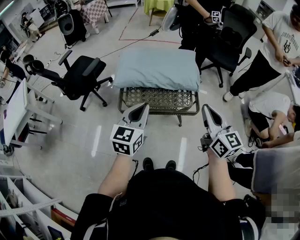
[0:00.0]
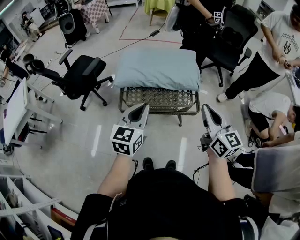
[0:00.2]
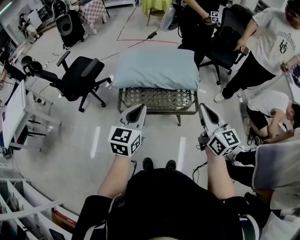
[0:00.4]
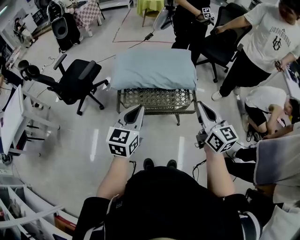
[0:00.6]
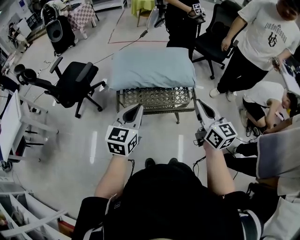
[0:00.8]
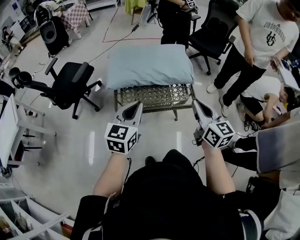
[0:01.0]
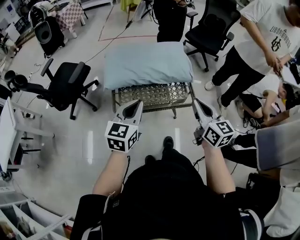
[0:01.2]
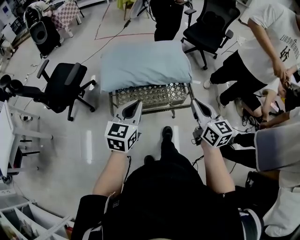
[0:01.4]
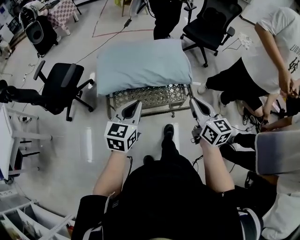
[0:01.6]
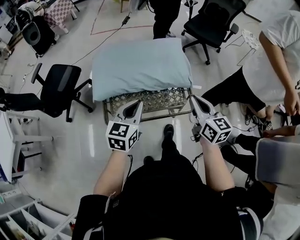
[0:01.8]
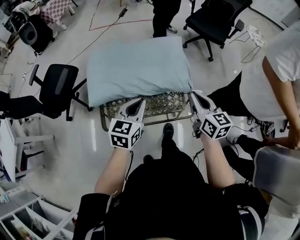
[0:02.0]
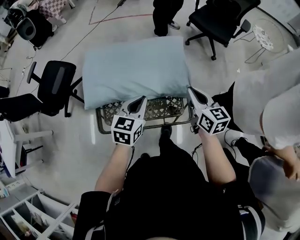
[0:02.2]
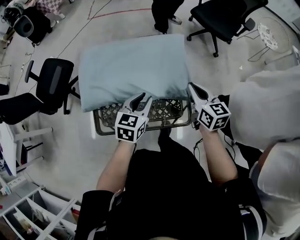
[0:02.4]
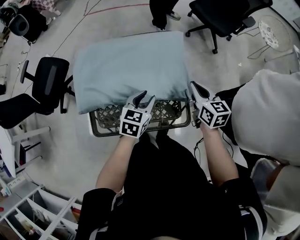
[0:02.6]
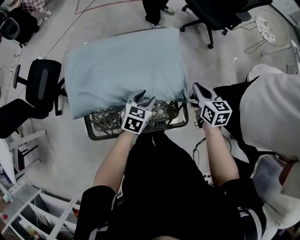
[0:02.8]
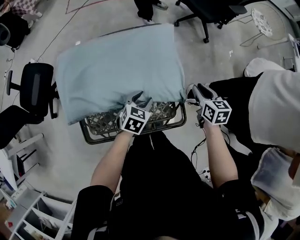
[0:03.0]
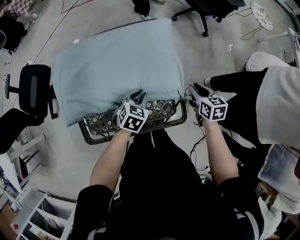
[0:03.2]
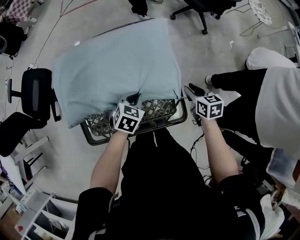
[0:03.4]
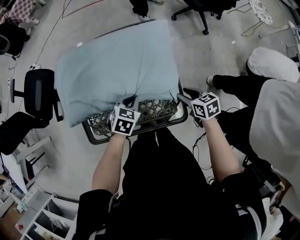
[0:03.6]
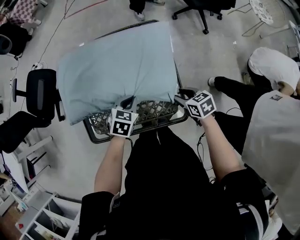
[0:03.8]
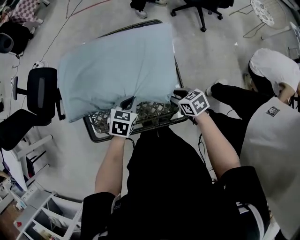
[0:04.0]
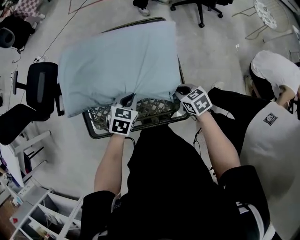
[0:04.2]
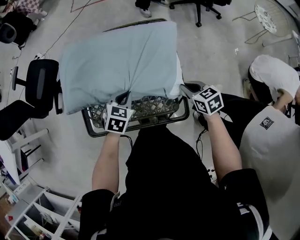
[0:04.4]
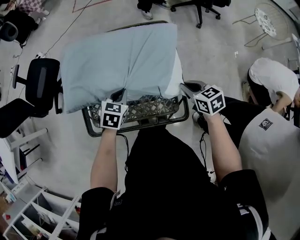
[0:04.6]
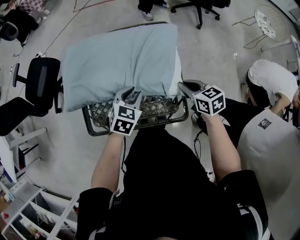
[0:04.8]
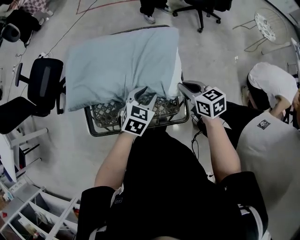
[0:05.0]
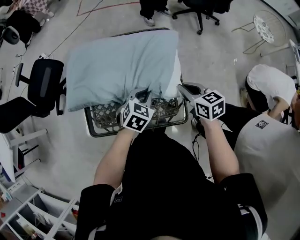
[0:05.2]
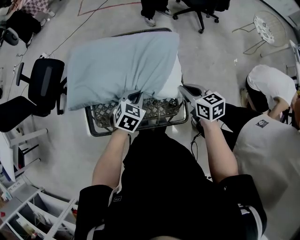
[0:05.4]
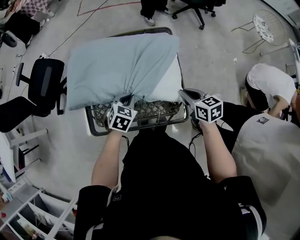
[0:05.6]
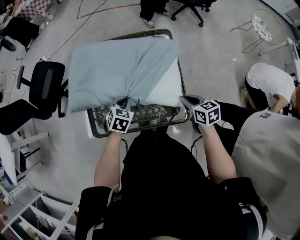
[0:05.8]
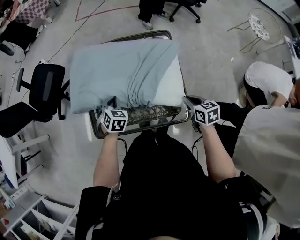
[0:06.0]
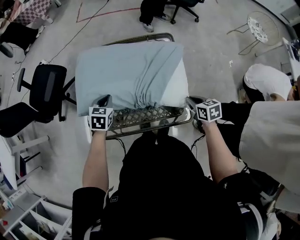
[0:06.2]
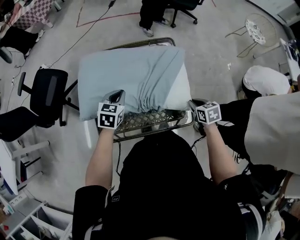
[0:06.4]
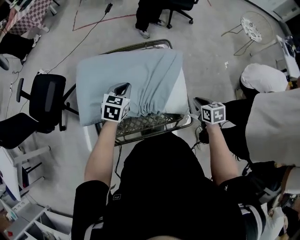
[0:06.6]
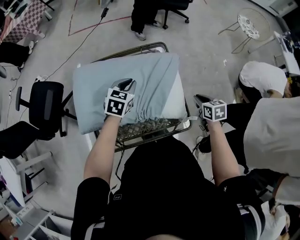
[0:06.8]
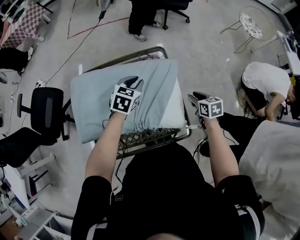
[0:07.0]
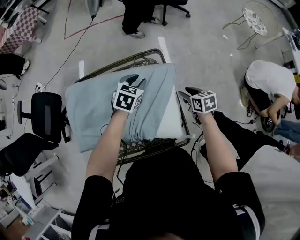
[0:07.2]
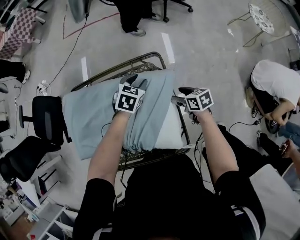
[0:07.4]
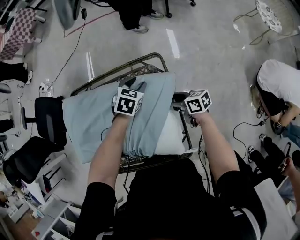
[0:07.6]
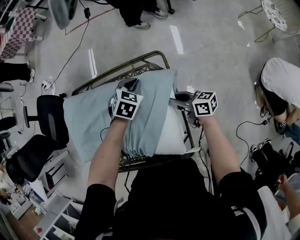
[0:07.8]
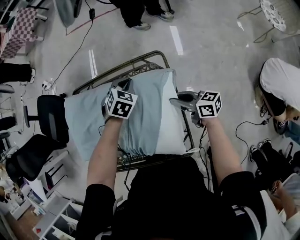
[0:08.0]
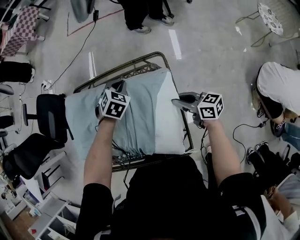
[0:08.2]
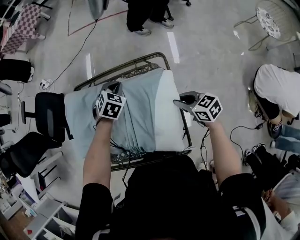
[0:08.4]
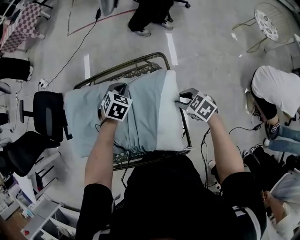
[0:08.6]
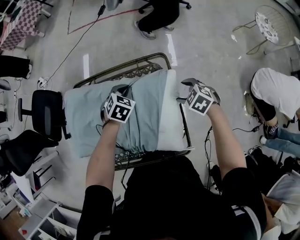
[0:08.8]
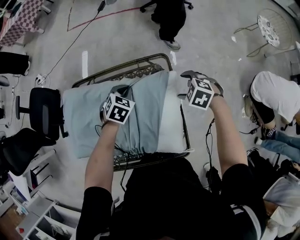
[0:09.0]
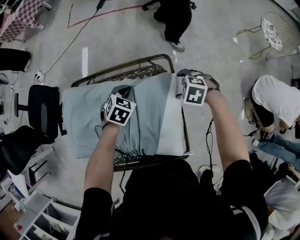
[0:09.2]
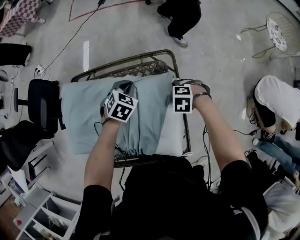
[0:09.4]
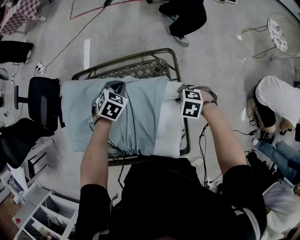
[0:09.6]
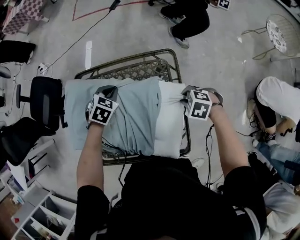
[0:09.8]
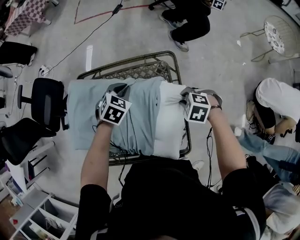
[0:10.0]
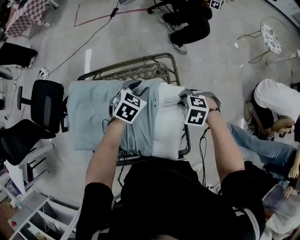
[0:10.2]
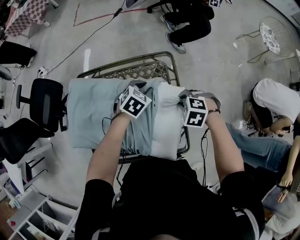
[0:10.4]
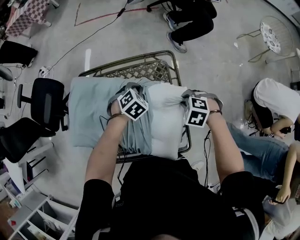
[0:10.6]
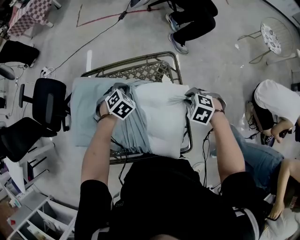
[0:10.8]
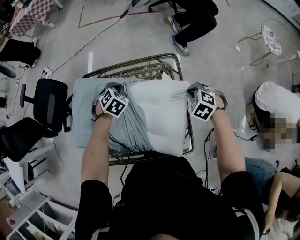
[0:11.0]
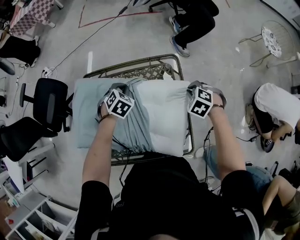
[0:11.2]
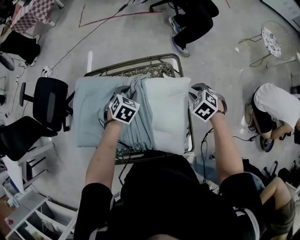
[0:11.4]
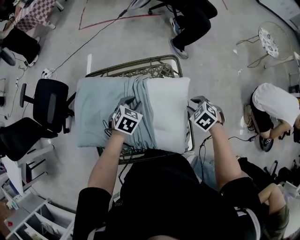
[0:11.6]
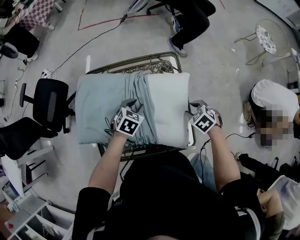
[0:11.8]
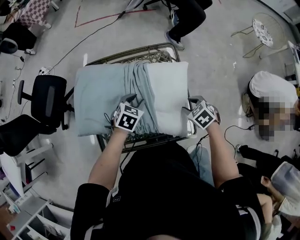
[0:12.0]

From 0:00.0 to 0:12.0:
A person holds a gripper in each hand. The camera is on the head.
From 0:00.0 to 0:01.6: The grippers both shift forward and downward by roughly 10 cm.
From 0:01.6 to 0:03.0: The right gripper moves forward, downward and to the right, some 40 cm, and changes its angle by approximately 30 degrees; the left gripper is displaced downward, forward and to the right by about 35 cm, points its fingers about 30 degrees further downward, and opens up.
From 0:03.0 to 0:04.4: The right gripper swivels about 30 degrees; the left gripper ends up roughly 10 cm from where it was, and closes up.
From 0:04.4 to 0:06.0: The left gripper heads to the left, covering about 10 cm, and opens, then closes again; the right gripper moves roughly 10 cm upward and comes back.
From 0:06.0 to 0:07.6: The right gripper changes place by approximately 20 cm, turns by about 30 degrees, and opens up. The left gripper goes upward and returns, roughly 10 cm each way, swivels roughly 20 degrees, and opens.
From 0:07.6 to 0:09.0: The left gripper goes roughly 10 cm to the left, and closes up. Meanwhile the right gripper heads upward and to the right, covering approximately 10 cm, tips its fingers downward by approximately 40 degrees, and closes, then opens again.
From 0:09.0 to 0:10.4: The left gripper ends up roughly 5 cm from where it was, and opens up. Meanwhile the right gripper moves some 5 cm downward and comes back, and closes its fingers.
From 0:10.4 to 0:12.0: The right gripper ends up about 10 cm from where it was, and changes its angle by some 40 degrees, while the left gripper shifts by about 15 cm, and closes and opens again.

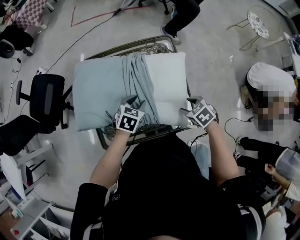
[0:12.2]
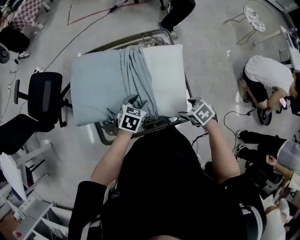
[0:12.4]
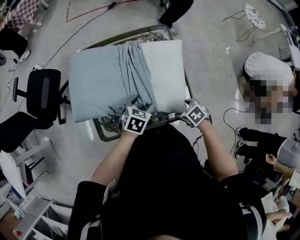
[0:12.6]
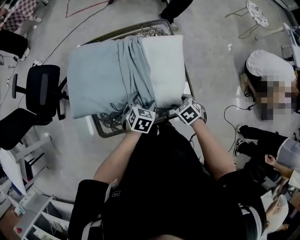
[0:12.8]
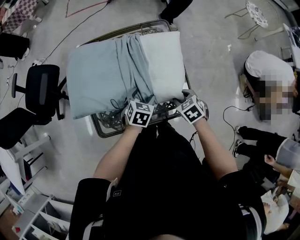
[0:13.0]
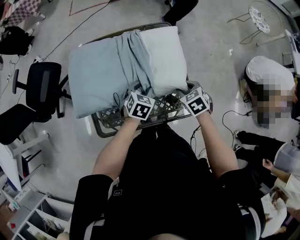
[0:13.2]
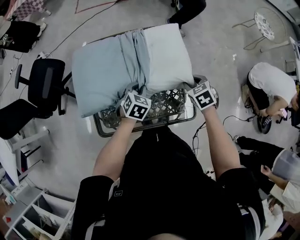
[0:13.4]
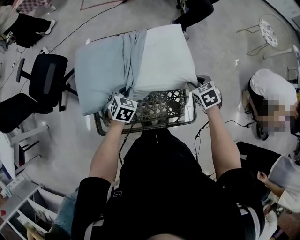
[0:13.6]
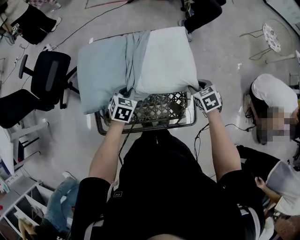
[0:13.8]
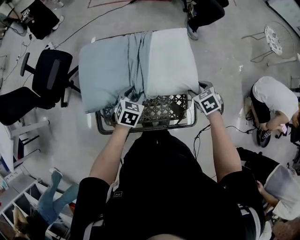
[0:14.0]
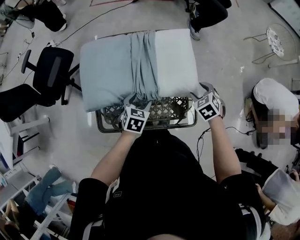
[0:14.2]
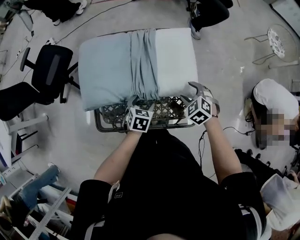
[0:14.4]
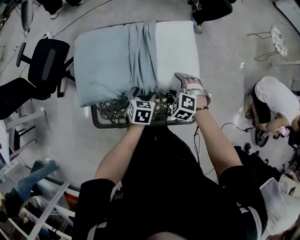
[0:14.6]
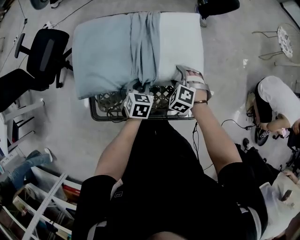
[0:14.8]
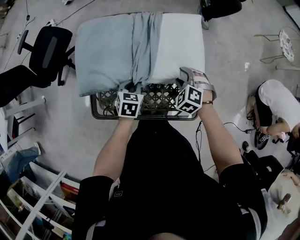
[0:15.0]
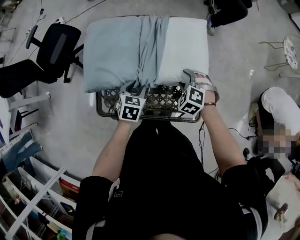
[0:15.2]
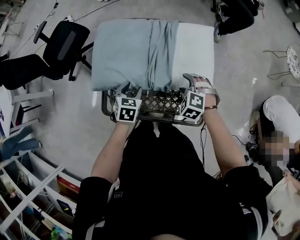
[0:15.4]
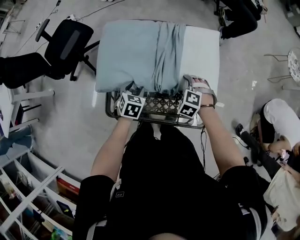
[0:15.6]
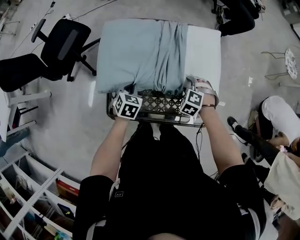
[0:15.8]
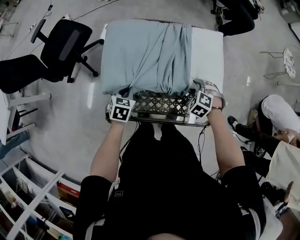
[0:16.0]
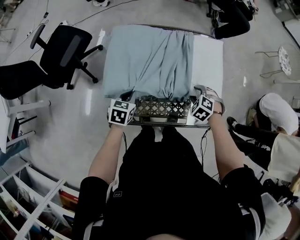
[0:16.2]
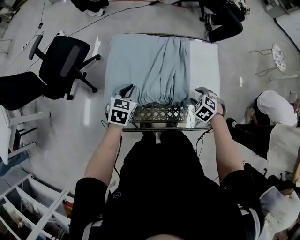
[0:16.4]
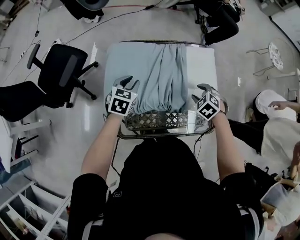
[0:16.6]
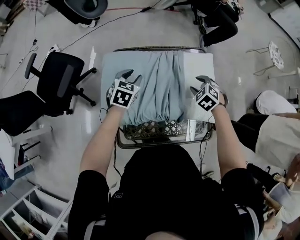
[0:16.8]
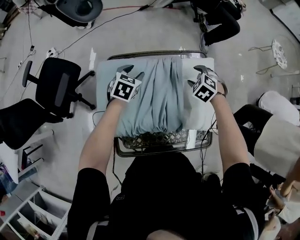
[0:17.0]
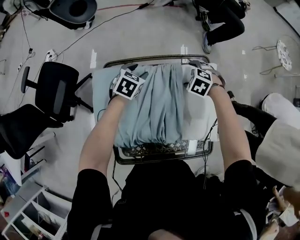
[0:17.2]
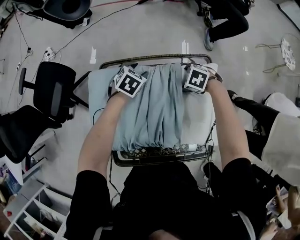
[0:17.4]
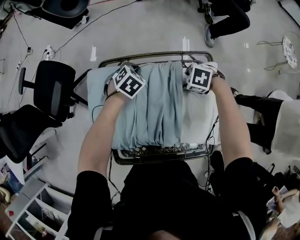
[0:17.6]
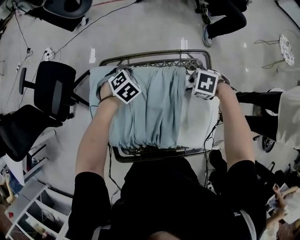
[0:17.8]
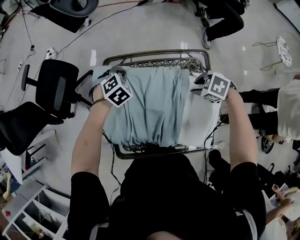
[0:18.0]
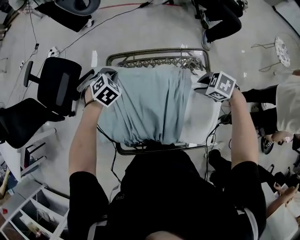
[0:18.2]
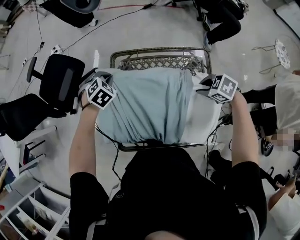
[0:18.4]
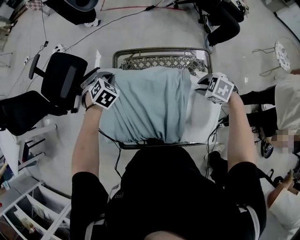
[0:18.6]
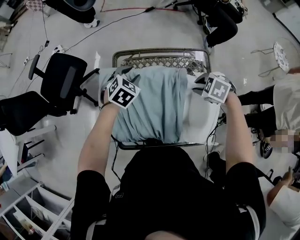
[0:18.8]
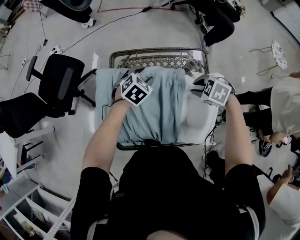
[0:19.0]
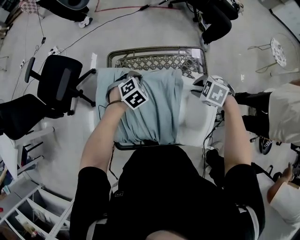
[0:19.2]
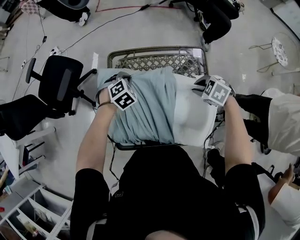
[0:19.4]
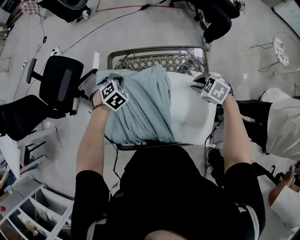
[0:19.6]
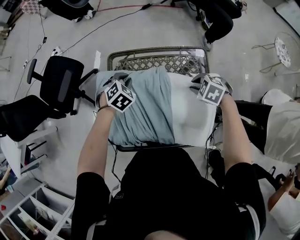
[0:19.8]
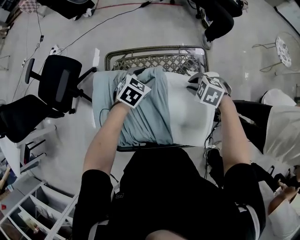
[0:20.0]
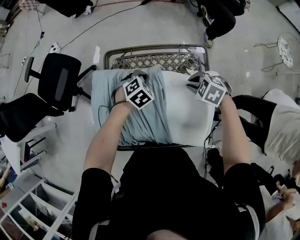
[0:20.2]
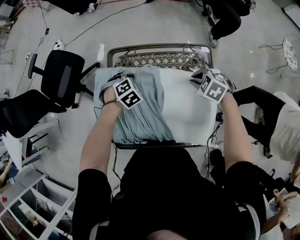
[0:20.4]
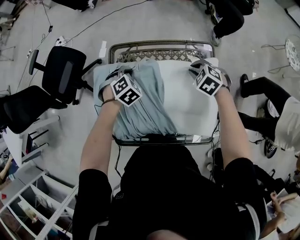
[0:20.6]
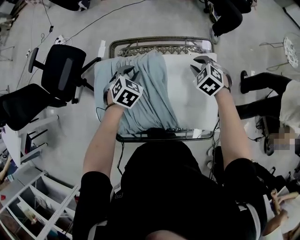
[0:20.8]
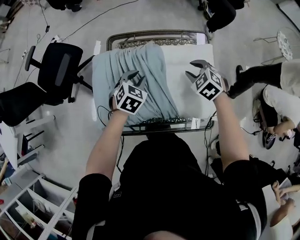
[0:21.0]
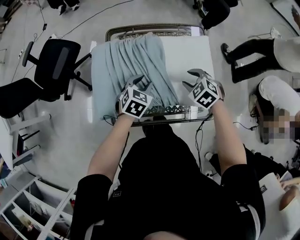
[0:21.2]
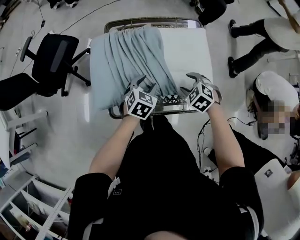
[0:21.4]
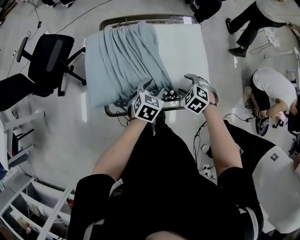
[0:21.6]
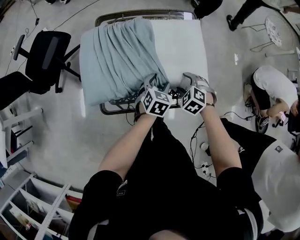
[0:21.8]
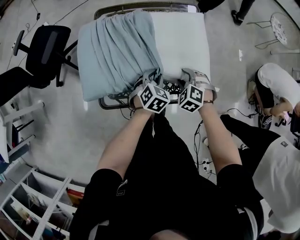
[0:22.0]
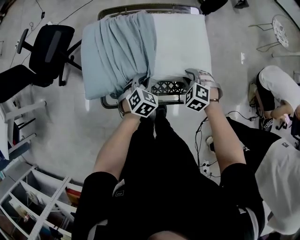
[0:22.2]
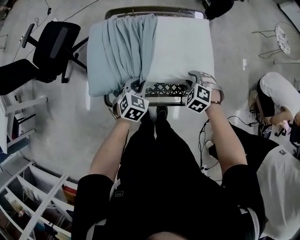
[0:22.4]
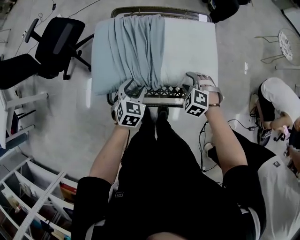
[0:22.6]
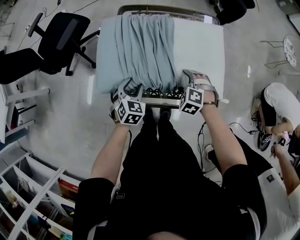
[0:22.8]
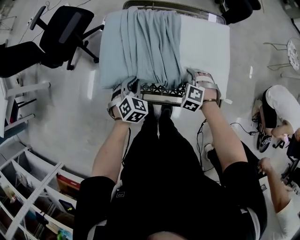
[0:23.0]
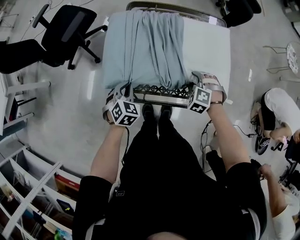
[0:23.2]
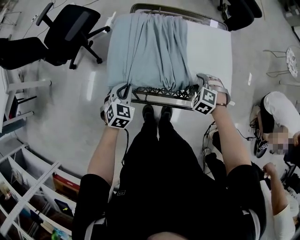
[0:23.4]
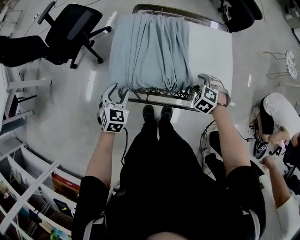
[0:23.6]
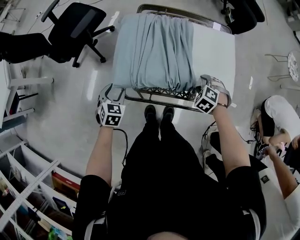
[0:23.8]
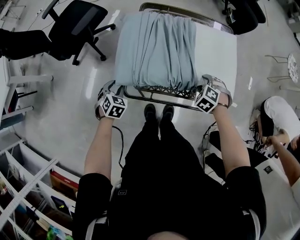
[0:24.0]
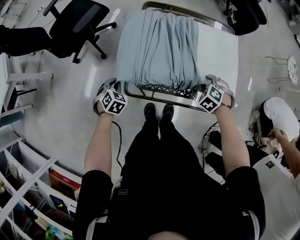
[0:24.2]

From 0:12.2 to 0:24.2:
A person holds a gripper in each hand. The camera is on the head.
From 0:12.2 to 0:13.8: The right gripper is displaced forward by some 10 cm. The left gripper travels to the left by some 5 cm, and closes.
From 0:13.8 to 0:15.2: The right gripper heads to the left, covering some 10 cm, and rolls counterclockwise, seen from behind, by approximately 50 degrees, while the left gripper goes roughly 5 cm backward, and opens its fingers.
From 0:15.2 to 0:16.6: The right gripper shifts by roughly 5 cm, and changes its angle by roughly 20 degrees, while the left gripper travels to the left, forward and upward by about 20 cm, and closes, then reopens.
From 0:16.6 to 0:18.2: The right gripper reaches roughly 10 cm downward, then returns, swivels some 30 degrees, and opens and closes again. The left gripper goes downward and returns, some 10 cm each way, rotates some 40 degrees, and closes its fingers.
From 0:18.2 to 0:19.8: The left gripper moves left and right over some 15 cm, changing direction 2 times, and opens, then closes again.
From 0:19.8 to 0:21.2: The right gripper changes place by about 10 cm, while the left gripper ends up roughly 20 cm from where it was, and turns by about 20 degrees.
From 0:21.2 to 0:22.6: Both grippers move backward, roughly 10 cm. The left gripper goes to the right and returns, about 10 cm each way, and closes, then reopens. The right gripper changes its angle by about 20 degrees.
From 0:22.6 to 0:24.2: The left gripper shifts about 20 cm to the left, turns by roughly 20 degrees, and closes up.
